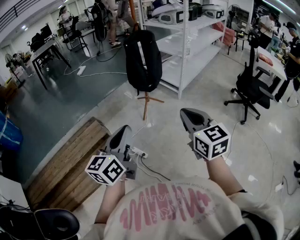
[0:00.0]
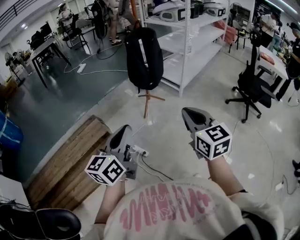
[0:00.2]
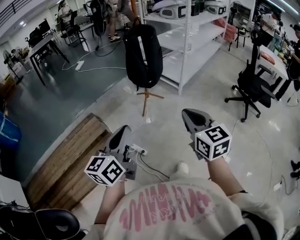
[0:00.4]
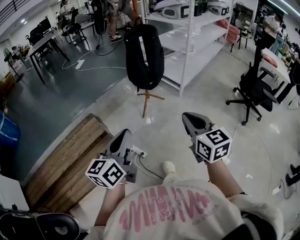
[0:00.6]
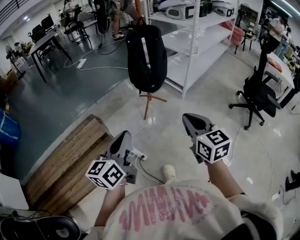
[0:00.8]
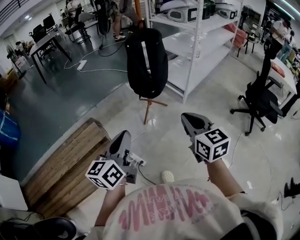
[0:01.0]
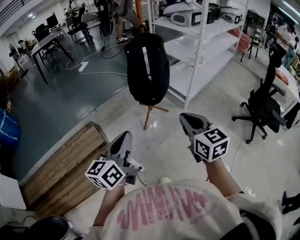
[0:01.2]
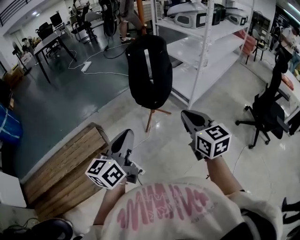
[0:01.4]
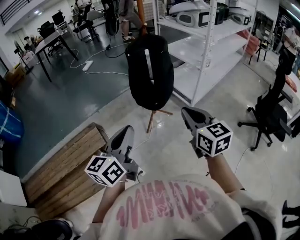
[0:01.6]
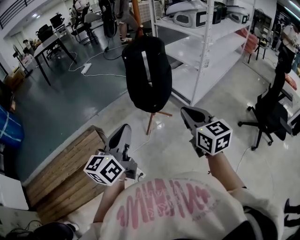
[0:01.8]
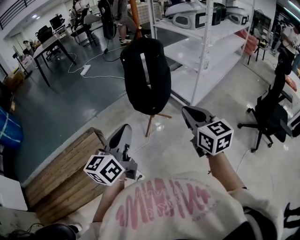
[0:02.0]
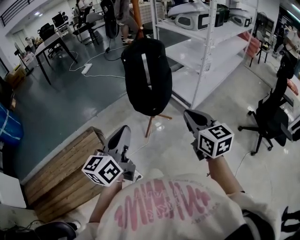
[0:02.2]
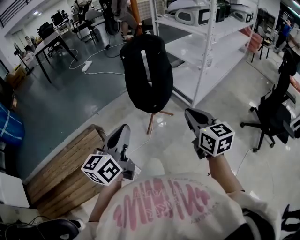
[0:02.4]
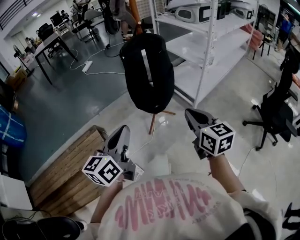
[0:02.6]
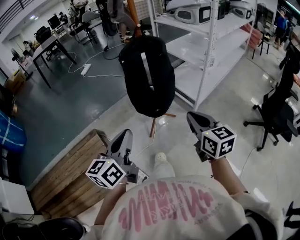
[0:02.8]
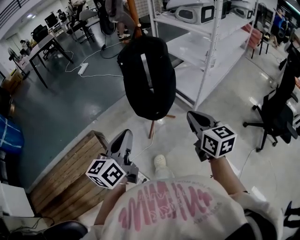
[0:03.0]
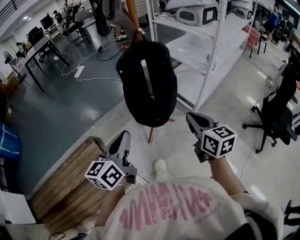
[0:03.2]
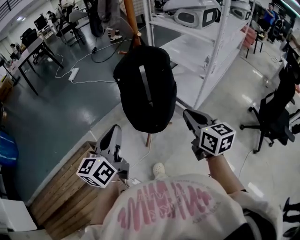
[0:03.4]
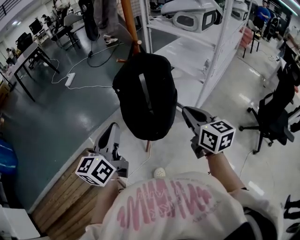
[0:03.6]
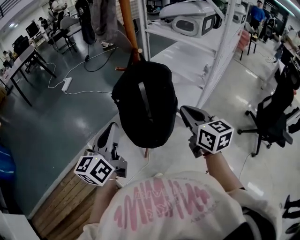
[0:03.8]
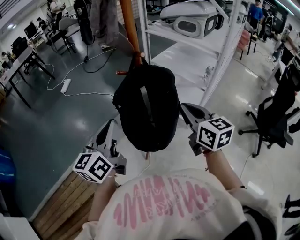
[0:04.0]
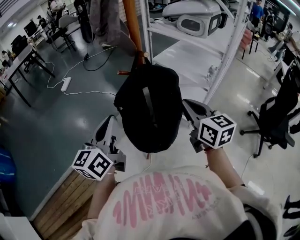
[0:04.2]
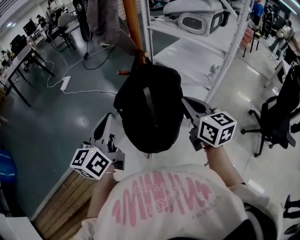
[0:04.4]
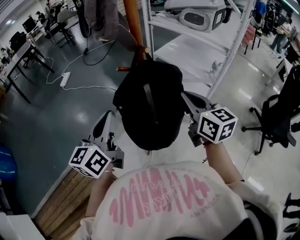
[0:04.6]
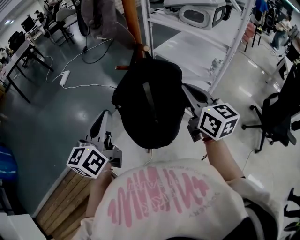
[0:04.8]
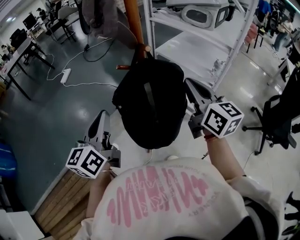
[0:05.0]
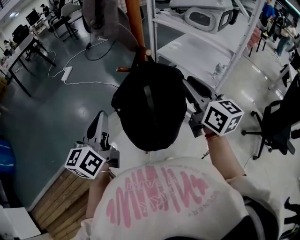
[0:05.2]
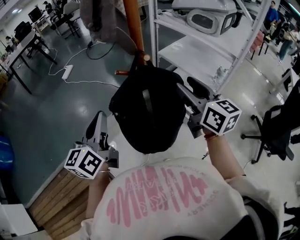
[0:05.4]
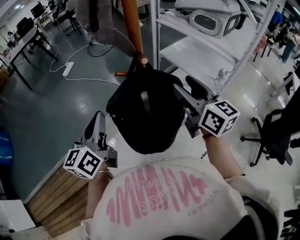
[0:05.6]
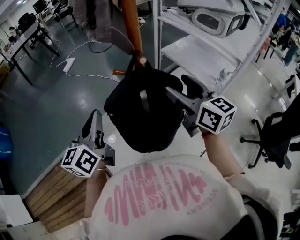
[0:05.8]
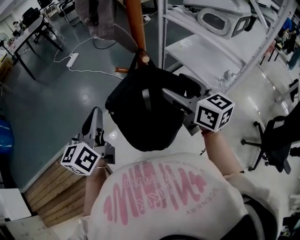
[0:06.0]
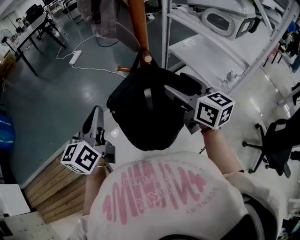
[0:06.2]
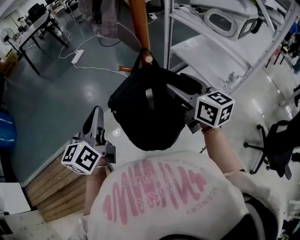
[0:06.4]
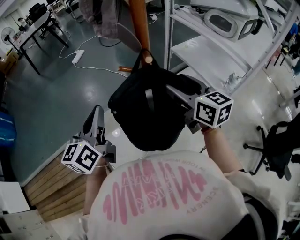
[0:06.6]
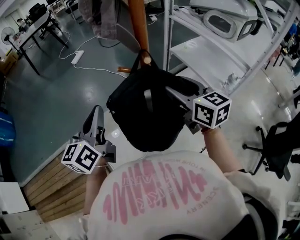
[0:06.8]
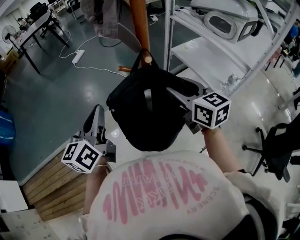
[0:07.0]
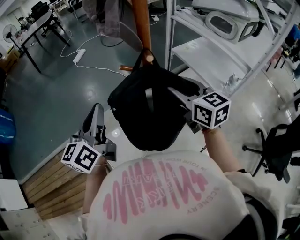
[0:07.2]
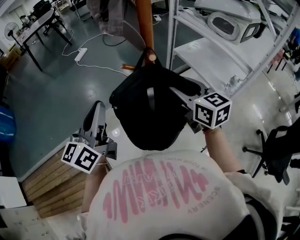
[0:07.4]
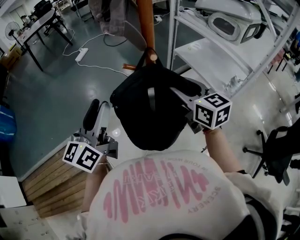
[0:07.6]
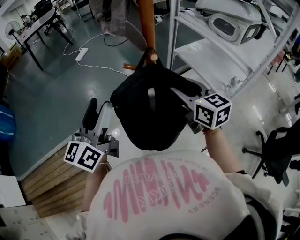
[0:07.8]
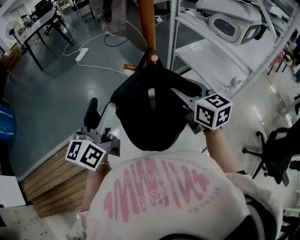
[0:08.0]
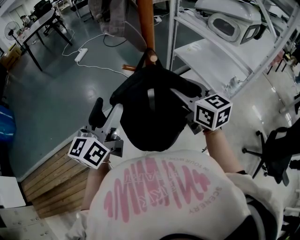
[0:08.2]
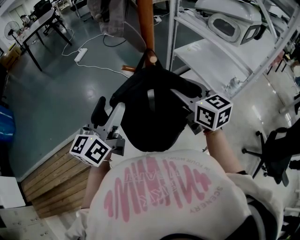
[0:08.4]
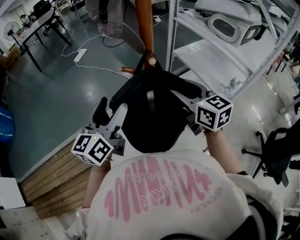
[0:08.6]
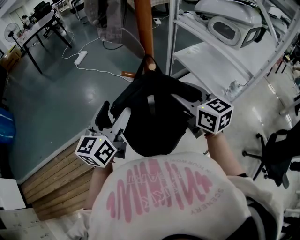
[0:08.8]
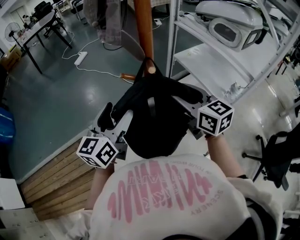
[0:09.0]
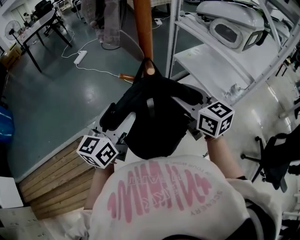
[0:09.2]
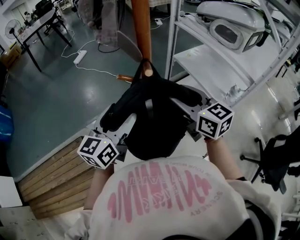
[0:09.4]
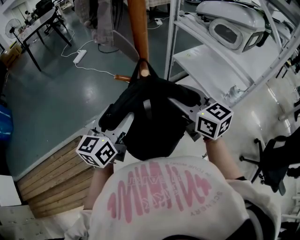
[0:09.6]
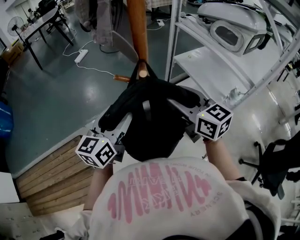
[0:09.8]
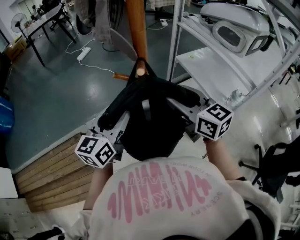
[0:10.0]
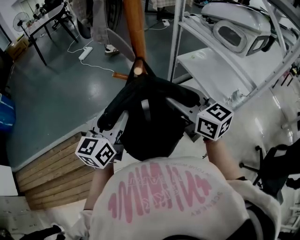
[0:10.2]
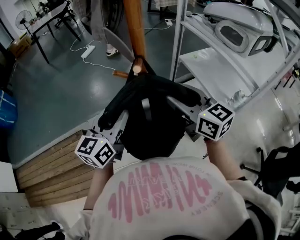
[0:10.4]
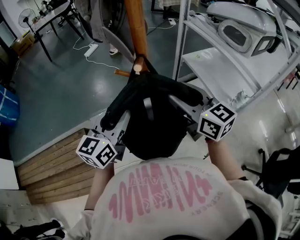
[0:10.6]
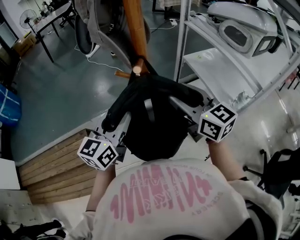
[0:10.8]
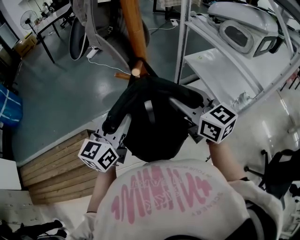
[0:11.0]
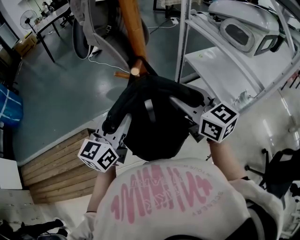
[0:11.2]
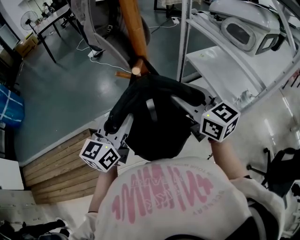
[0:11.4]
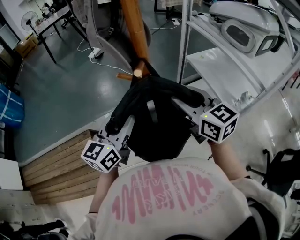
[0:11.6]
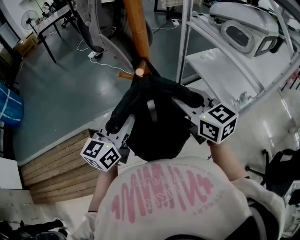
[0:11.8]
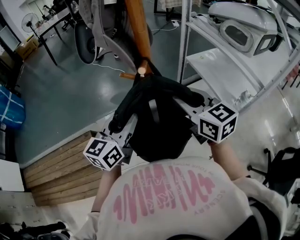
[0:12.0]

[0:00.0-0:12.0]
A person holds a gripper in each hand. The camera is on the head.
0.0 to 1.6 s: Both grippers move forward, approximately 30 cm.
1.6 to 3.0 s: The right gripper travels forward and downward by some 15 cm; the left gripper goes about 10 cm forward.
3.0 to 4.4 s: Both grippers move forward, approximately 30 cm.
4.4 to 6.0 s: The right gripper is displaced forward by roughly 10 cm, rotates about 20 degrees, and opens its fingers.
6.0 to 7.6 s: The right gripper closes its fingers, while the left gripper opens its fingers.
7.6 to 9.0 s: The left gripper shifts about 10 cm to the right and downward, and opens its fingers.
9.0 to 10.4 s: The left gripper closes.
10.4 to 12.0 s: There are only small adjustments of the grippers.

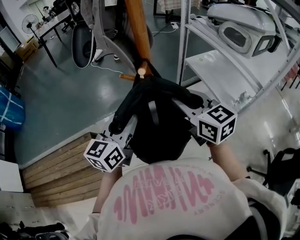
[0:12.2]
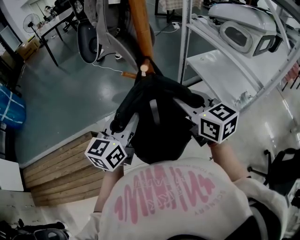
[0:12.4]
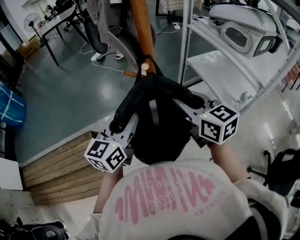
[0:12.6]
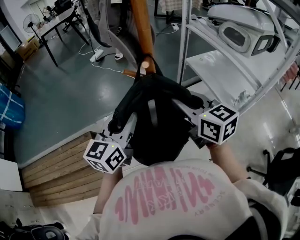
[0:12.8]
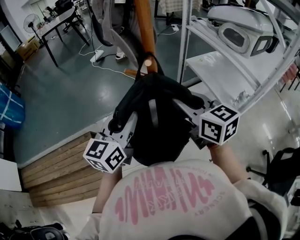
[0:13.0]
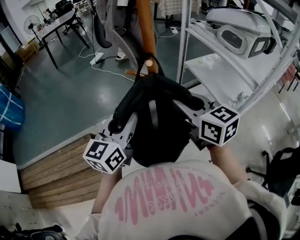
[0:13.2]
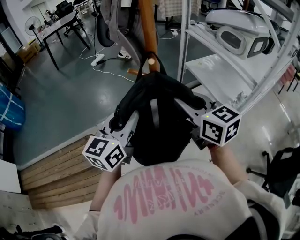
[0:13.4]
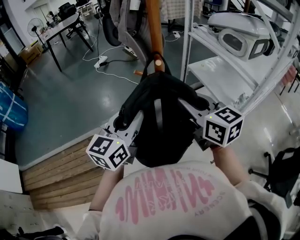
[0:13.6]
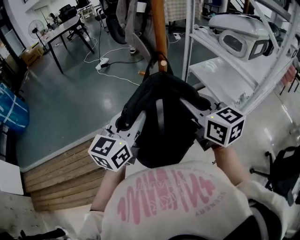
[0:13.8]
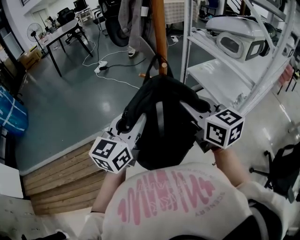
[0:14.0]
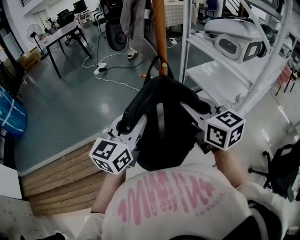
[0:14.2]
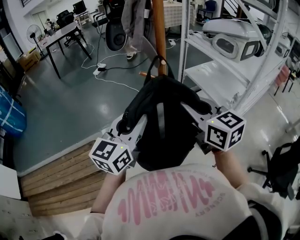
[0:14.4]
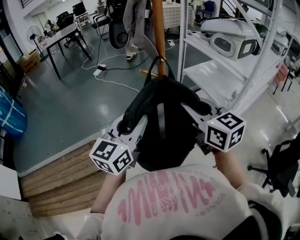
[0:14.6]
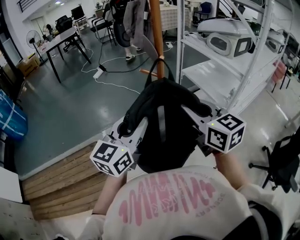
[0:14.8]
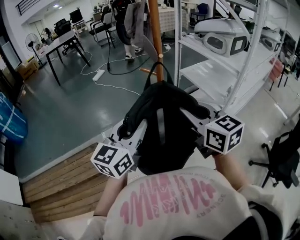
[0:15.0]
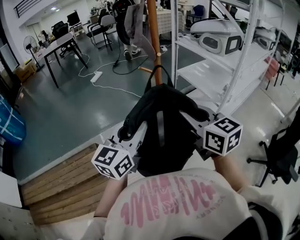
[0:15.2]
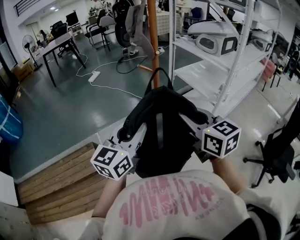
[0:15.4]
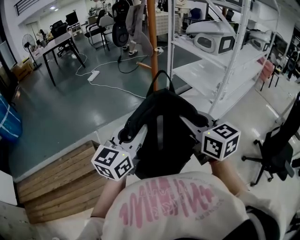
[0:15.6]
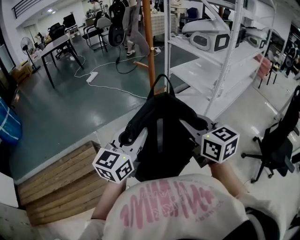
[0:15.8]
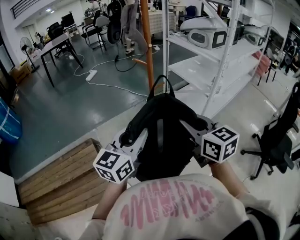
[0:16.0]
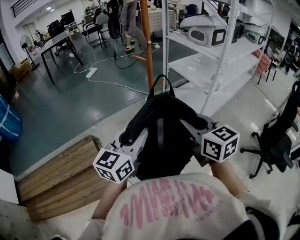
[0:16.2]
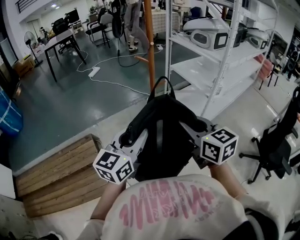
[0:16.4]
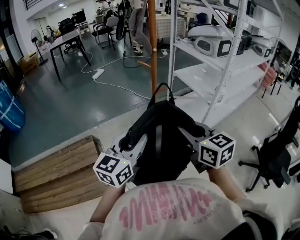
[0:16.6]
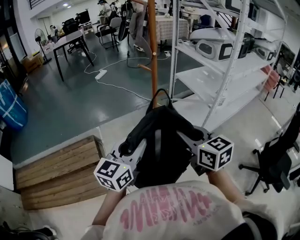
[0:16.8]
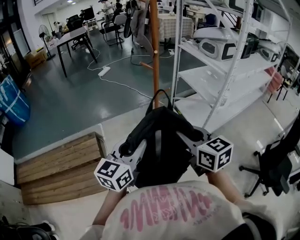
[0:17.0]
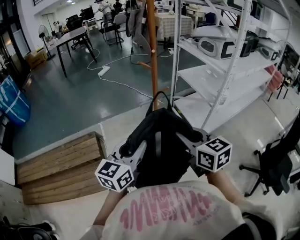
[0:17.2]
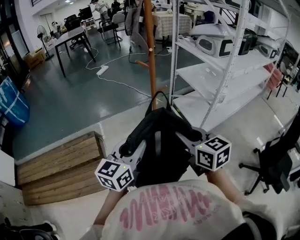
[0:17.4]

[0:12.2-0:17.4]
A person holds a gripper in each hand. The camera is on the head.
12.2 to 14.0 s: The right gripper shifts approximately 10 cm backward and upward. The left gripper moves upward and backward, about 10 cm.
14.0 to 15.6 s: The two grippers go approximately 20 cm backward.
15.6 to 17.4 s: The two grippers go approximately 5 cm backward.

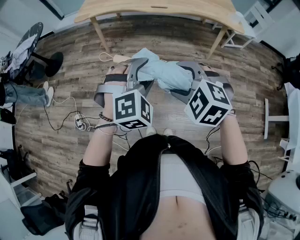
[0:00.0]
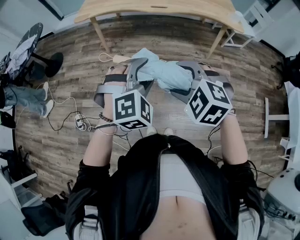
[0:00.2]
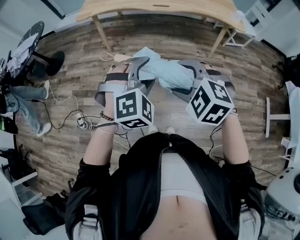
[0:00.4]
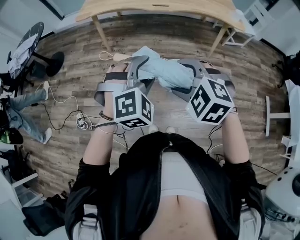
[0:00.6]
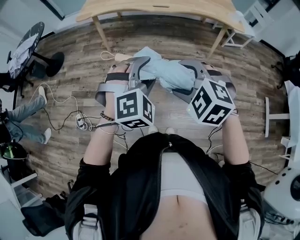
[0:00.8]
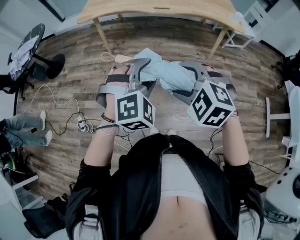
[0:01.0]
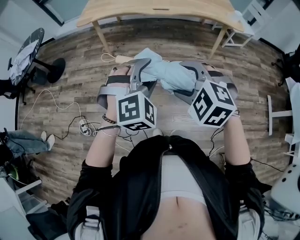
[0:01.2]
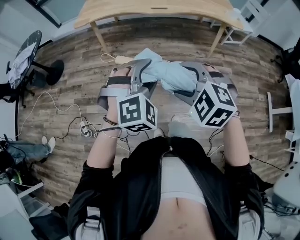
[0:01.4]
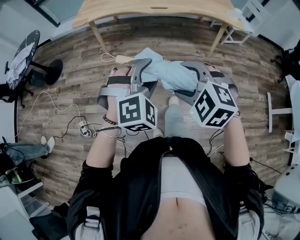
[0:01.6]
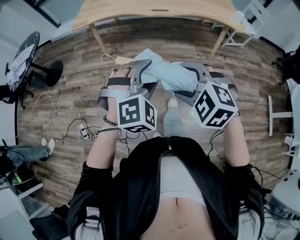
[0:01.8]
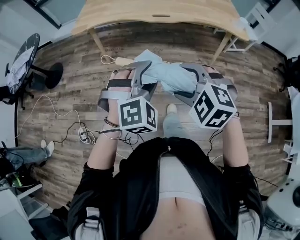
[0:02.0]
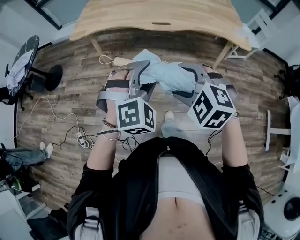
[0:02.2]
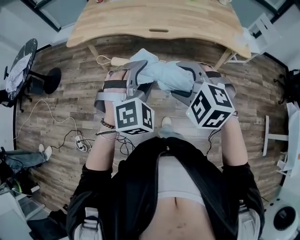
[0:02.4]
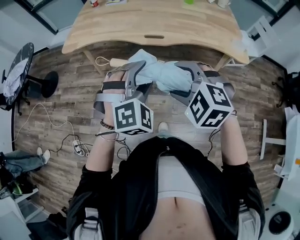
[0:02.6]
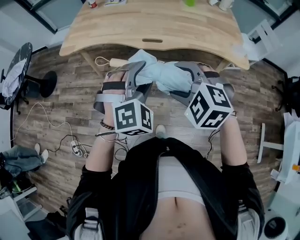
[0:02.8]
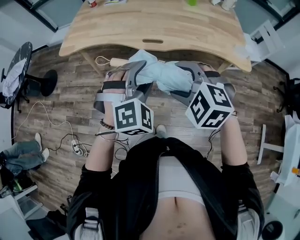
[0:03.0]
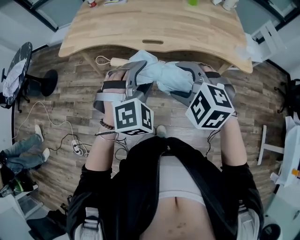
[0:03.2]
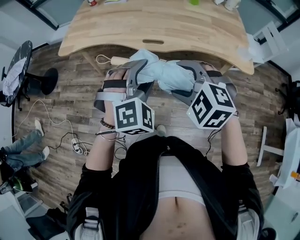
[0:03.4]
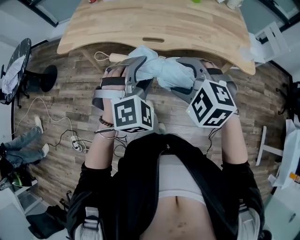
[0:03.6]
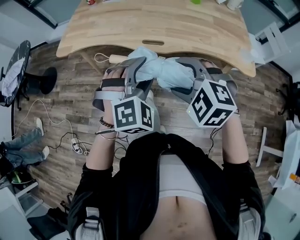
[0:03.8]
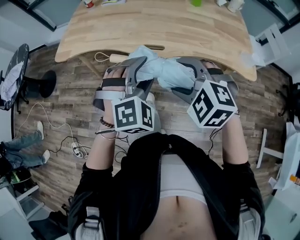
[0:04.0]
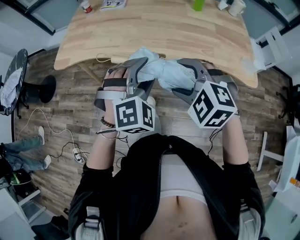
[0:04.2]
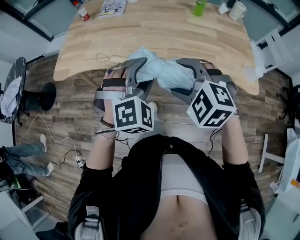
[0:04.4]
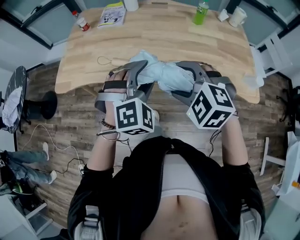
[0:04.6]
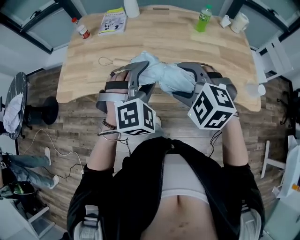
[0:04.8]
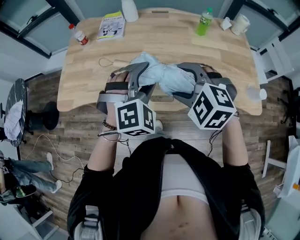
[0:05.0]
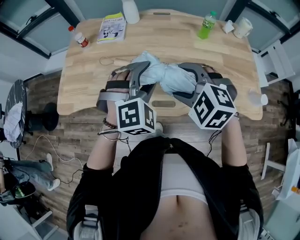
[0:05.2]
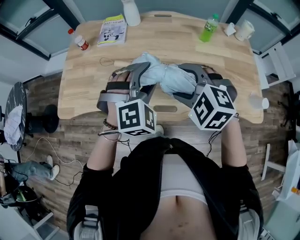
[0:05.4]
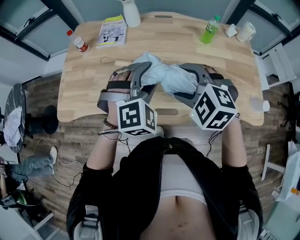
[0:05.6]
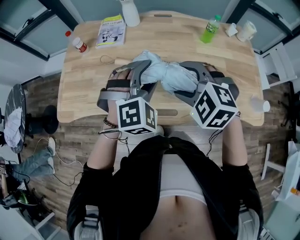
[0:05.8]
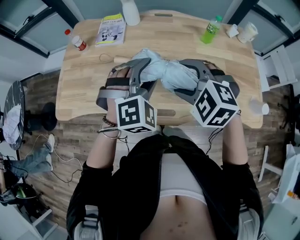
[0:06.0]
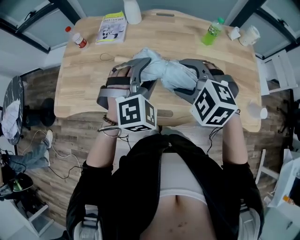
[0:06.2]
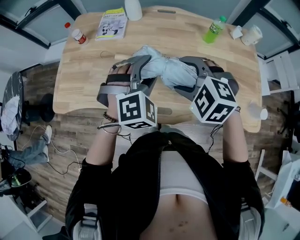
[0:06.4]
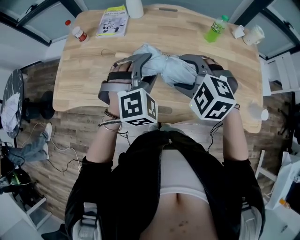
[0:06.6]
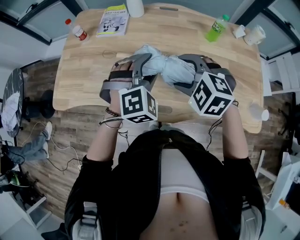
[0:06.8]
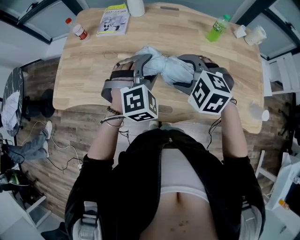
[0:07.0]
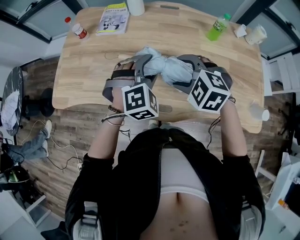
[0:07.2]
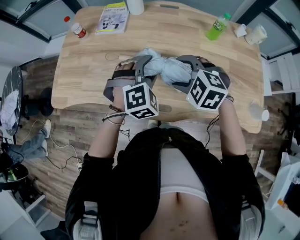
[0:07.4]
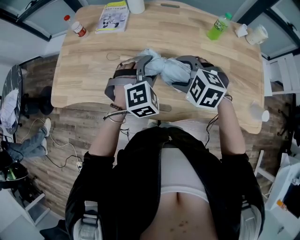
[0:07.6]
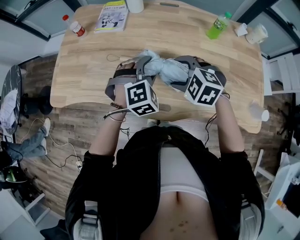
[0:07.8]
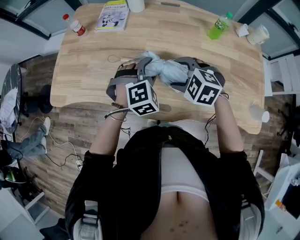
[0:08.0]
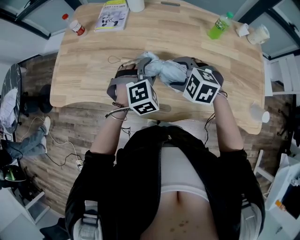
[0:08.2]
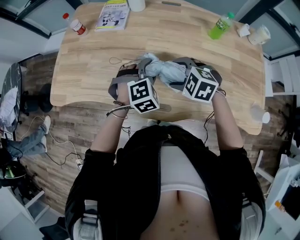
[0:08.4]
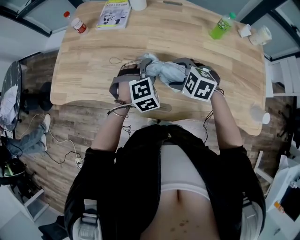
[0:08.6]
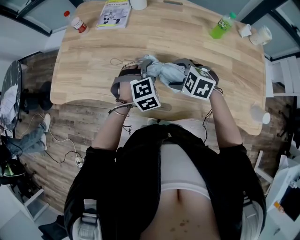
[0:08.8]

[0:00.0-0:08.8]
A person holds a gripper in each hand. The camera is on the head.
0.0 to 1.4 s: The grippers move only a little.
1.4 to 3.0 s: Both grippers move forward and to the right, some 35 cm.
3.0 to 4.4 s: Both grippers move forward, some 20 cm.
4.4 to 5.8 s: Both grippers travel together forward, approximately 25 cm.
5.8 to 7.4 s: Both grippers travel together downward, roughly 10 cm.
7.4 to 8.8 s: Both grippers travel together downward, approximately 10 cm.
